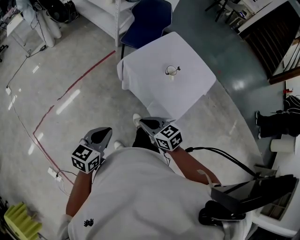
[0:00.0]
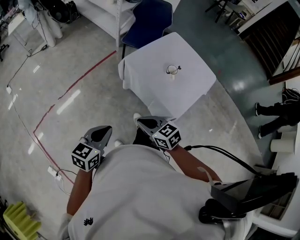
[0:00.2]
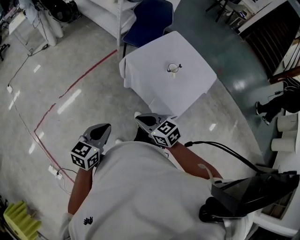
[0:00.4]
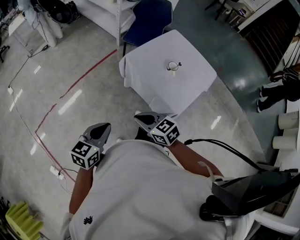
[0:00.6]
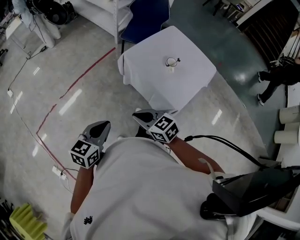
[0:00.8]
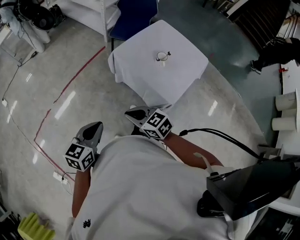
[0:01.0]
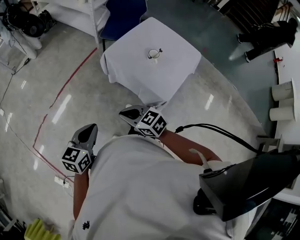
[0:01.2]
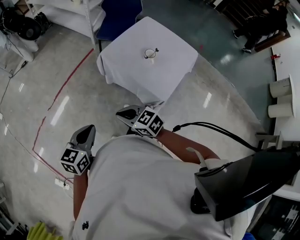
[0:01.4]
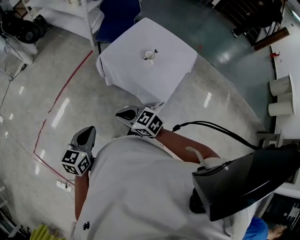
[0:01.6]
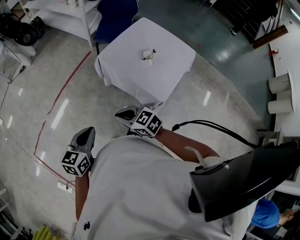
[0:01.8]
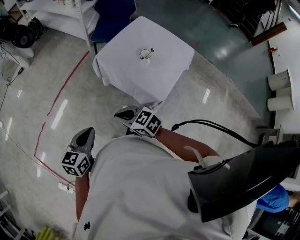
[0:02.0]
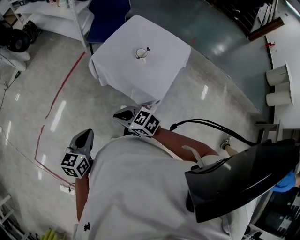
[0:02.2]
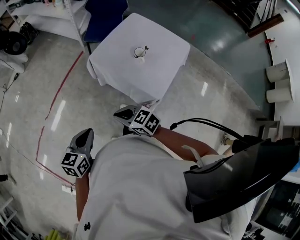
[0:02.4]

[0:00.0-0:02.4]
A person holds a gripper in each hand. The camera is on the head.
0:00.0 to 0:01.2: The right gripper ends up about 5 cm from where it was.
0:01.2 to 0:02.4: The right gripper shifts by approximately 5 cm, while the left gripper ends up some 5 cm from where it was.

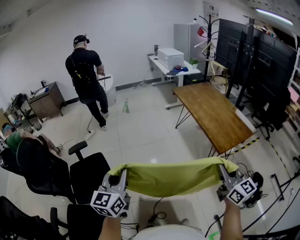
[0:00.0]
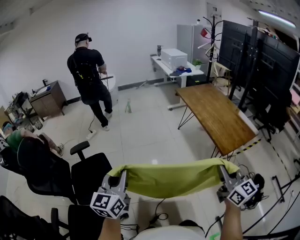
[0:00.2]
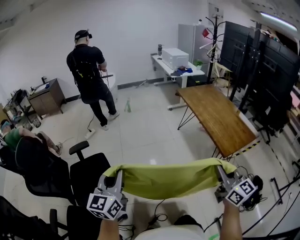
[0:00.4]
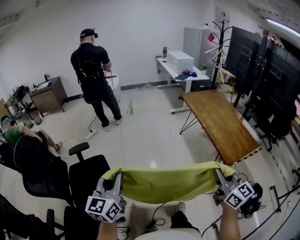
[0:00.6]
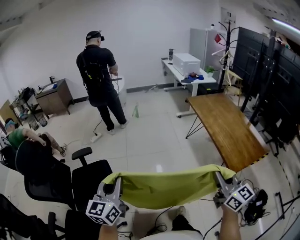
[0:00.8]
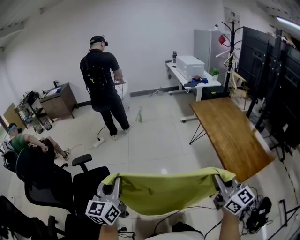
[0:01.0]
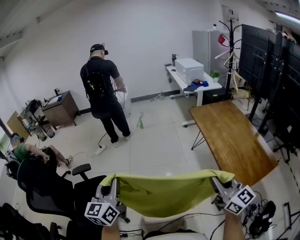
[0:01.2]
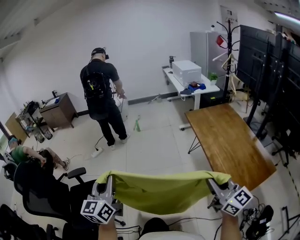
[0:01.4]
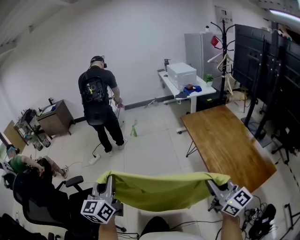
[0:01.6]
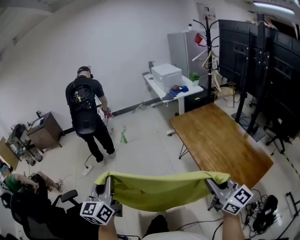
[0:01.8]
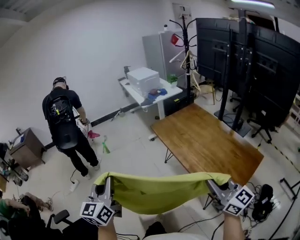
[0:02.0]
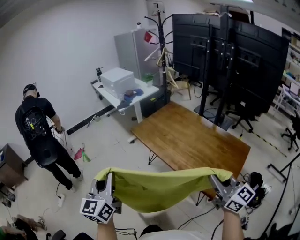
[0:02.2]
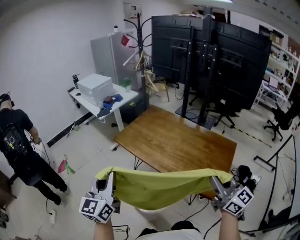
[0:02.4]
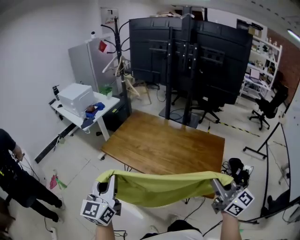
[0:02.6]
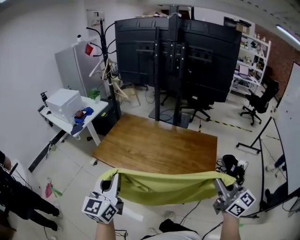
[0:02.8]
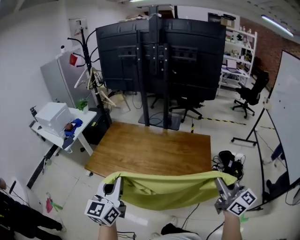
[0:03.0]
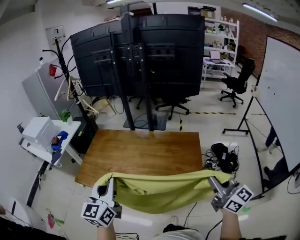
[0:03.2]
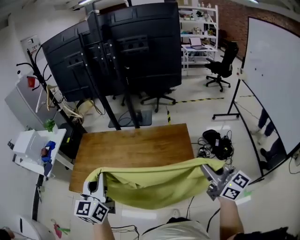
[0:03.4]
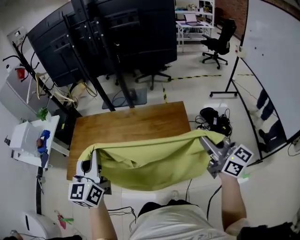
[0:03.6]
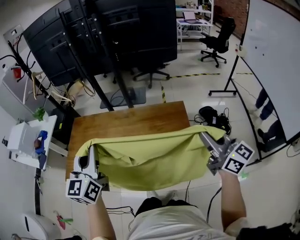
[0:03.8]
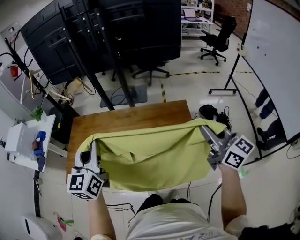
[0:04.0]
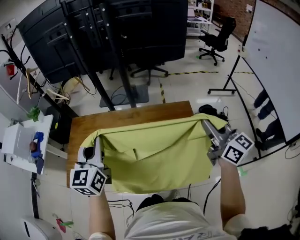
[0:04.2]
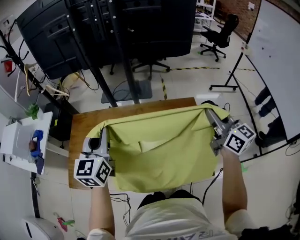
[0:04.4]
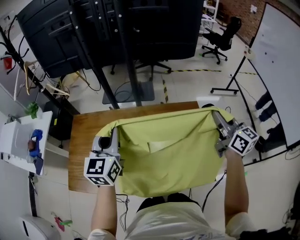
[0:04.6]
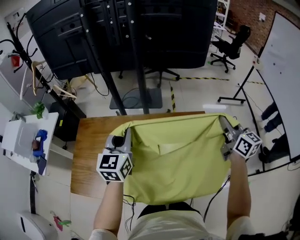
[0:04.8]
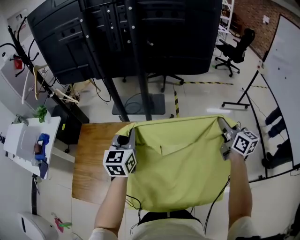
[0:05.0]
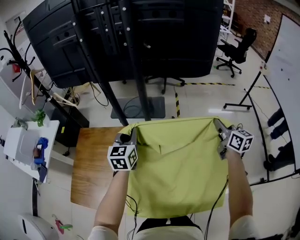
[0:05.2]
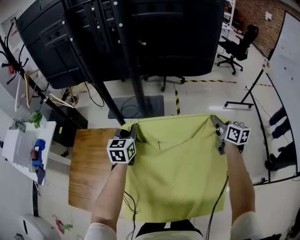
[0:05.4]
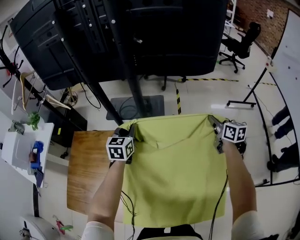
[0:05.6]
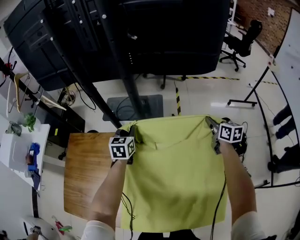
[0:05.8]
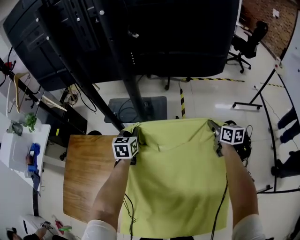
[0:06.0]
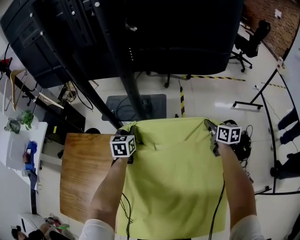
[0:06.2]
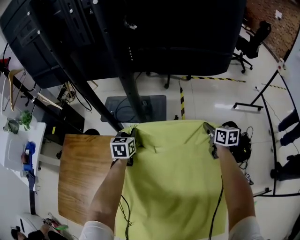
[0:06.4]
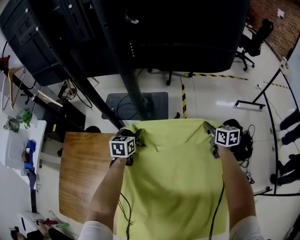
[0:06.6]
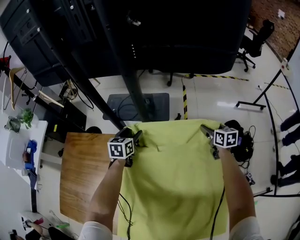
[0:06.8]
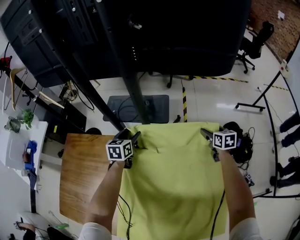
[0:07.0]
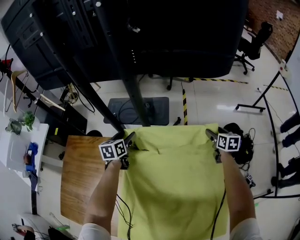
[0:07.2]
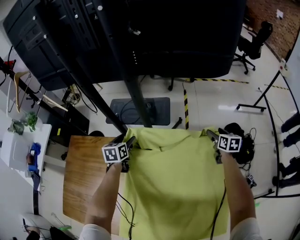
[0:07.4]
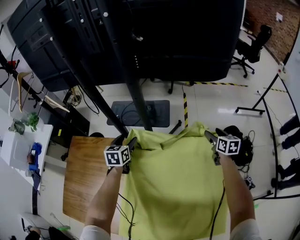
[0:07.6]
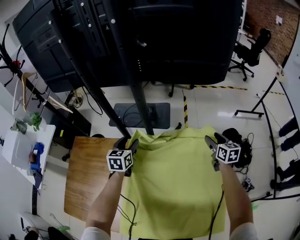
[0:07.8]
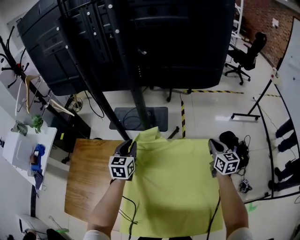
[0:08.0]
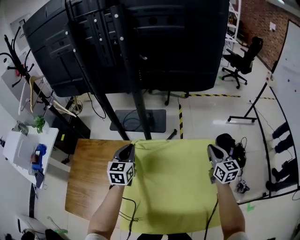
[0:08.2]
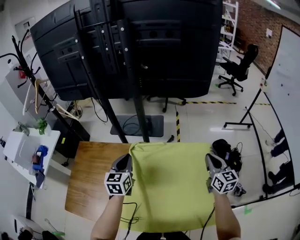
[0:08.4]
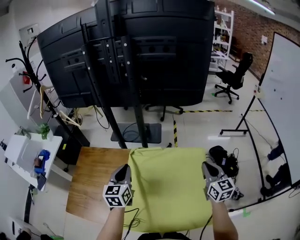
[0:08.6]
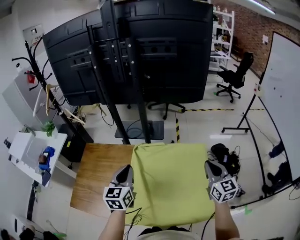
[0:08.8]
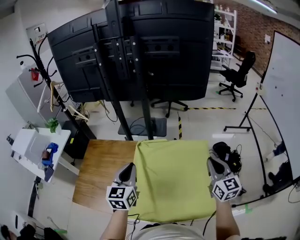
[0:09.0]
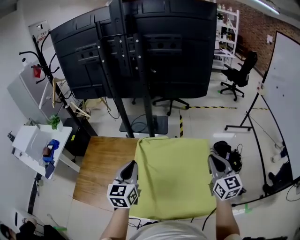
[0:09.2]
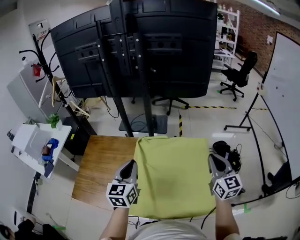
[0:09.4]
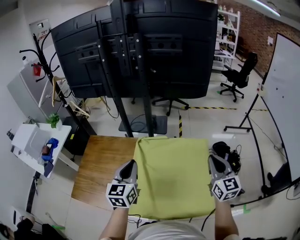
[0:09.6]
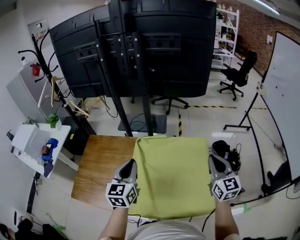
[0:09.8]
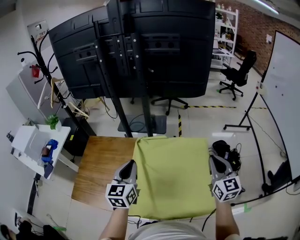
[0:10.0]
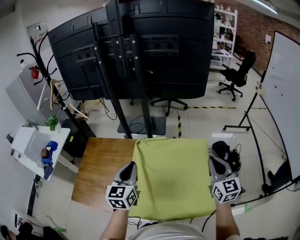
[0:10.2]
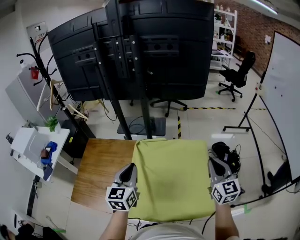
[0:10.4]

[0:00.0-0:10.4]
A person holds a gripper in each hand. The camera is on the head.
0:00.0 to 0:01.4: Both grippers travel together forward, some 25 cm.
0:01.4 to 0:03.0: The right gripper changes place by approximately 20 cm, and changes its angle by approximately 70 degrees, while the left gripper changes place by approximately 50 cm, and swivels roughly 70 degrees.
0:03.0 to 0:04.4: Both grippers move forward, some 30 cm.
0:04.4 to 0:06.0: Both grippers move forward and downward, roughly 50 cm. The left gripper rotates roughly 30 degrees; the right gripper turns by about 30 degrees.
0:06.0 to 0:07.4: The right gripper is displaced downward by approximately 10 cm, and opens; the left gripper shifts about 10 cm to the left and downward, and opens up.
0:07.4 to 0:09.0: The grippers both shift backward and upward by about 50 cm. The left gripper changes its angle by approximately 30 degrees, and closes its fingers; the right gripper swivels about 40 degrees, and closes.
0:09.0 to 0:10.4: The grippers make only small movements.

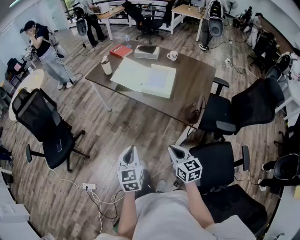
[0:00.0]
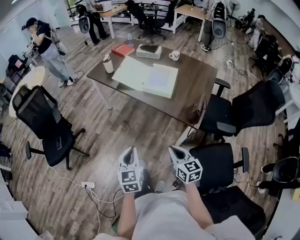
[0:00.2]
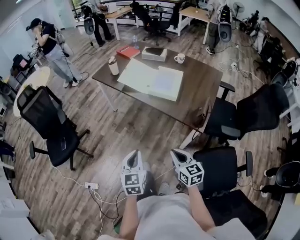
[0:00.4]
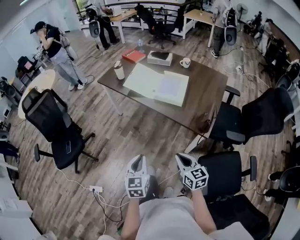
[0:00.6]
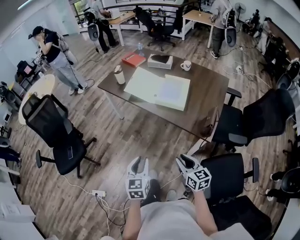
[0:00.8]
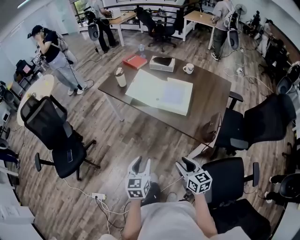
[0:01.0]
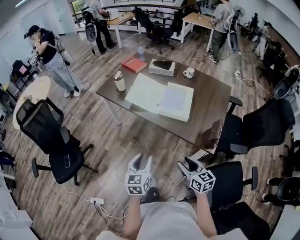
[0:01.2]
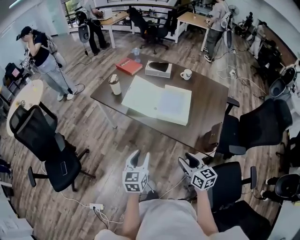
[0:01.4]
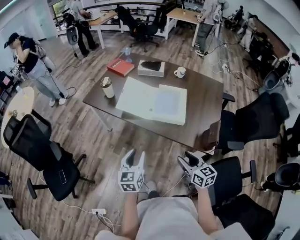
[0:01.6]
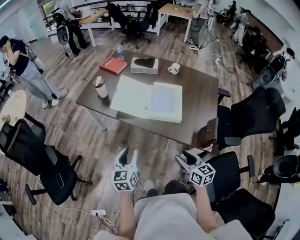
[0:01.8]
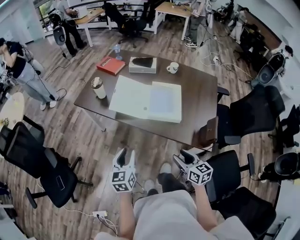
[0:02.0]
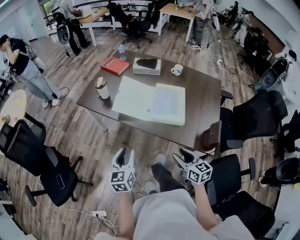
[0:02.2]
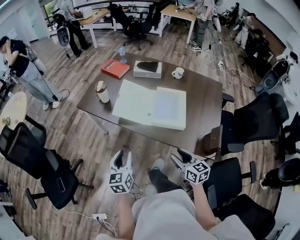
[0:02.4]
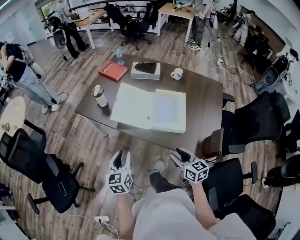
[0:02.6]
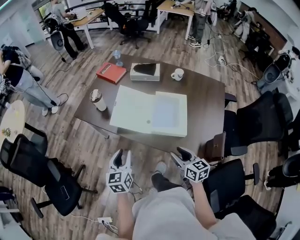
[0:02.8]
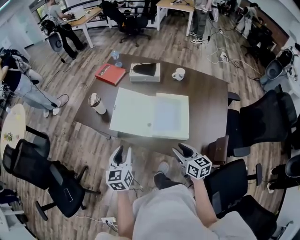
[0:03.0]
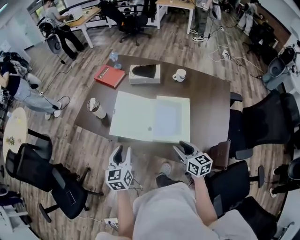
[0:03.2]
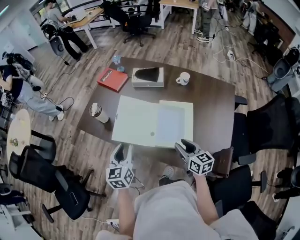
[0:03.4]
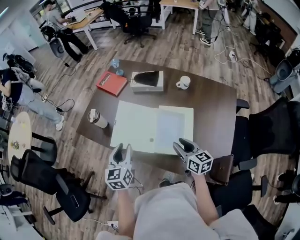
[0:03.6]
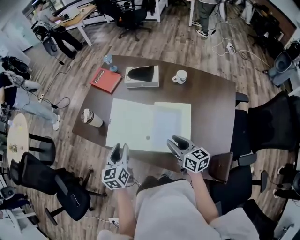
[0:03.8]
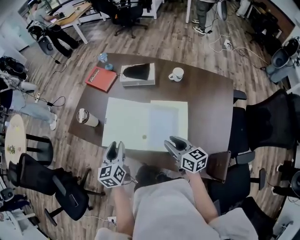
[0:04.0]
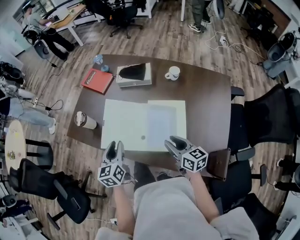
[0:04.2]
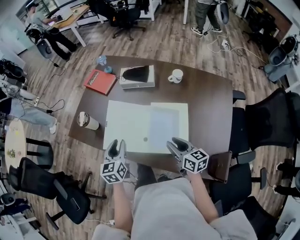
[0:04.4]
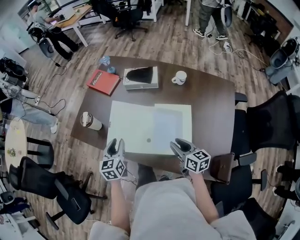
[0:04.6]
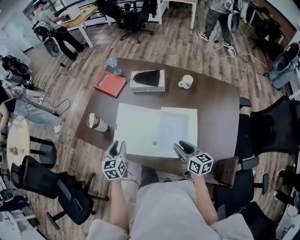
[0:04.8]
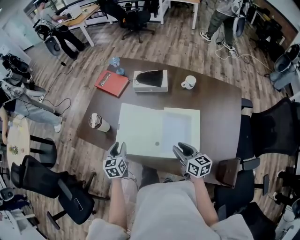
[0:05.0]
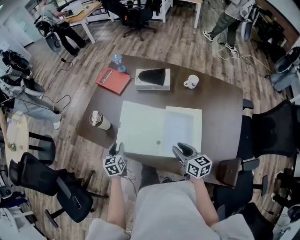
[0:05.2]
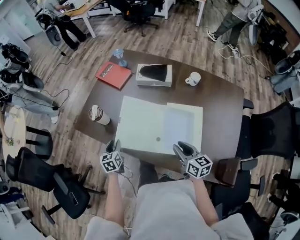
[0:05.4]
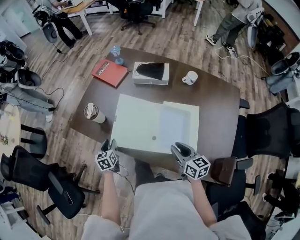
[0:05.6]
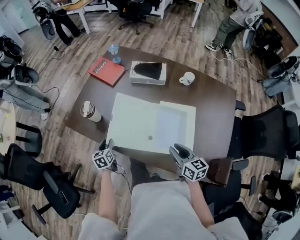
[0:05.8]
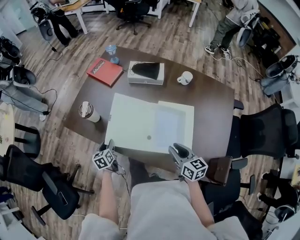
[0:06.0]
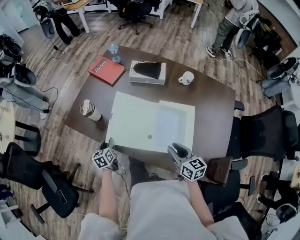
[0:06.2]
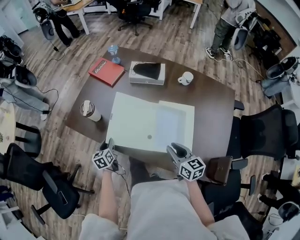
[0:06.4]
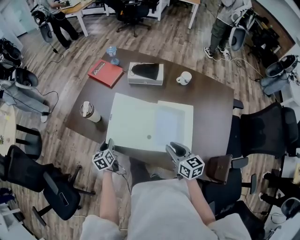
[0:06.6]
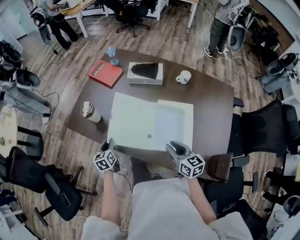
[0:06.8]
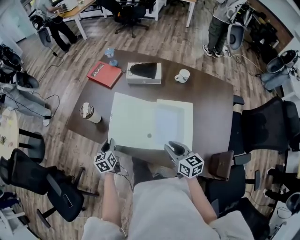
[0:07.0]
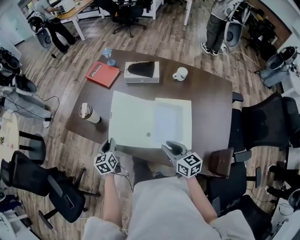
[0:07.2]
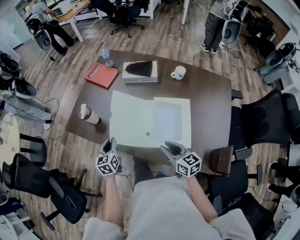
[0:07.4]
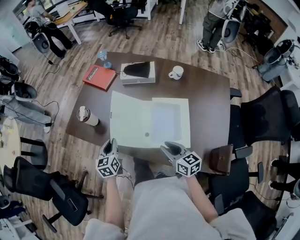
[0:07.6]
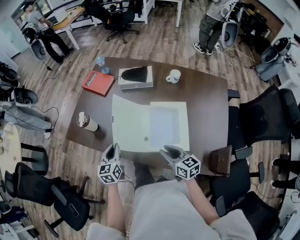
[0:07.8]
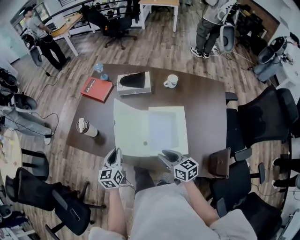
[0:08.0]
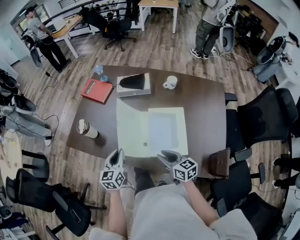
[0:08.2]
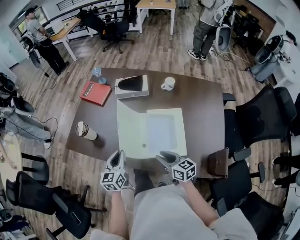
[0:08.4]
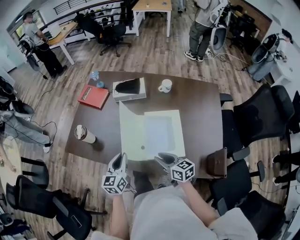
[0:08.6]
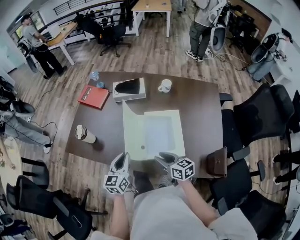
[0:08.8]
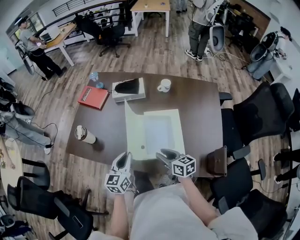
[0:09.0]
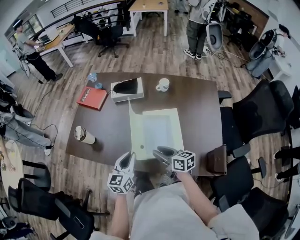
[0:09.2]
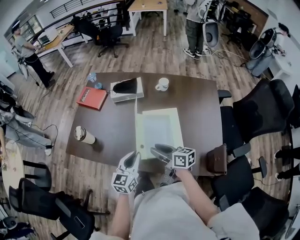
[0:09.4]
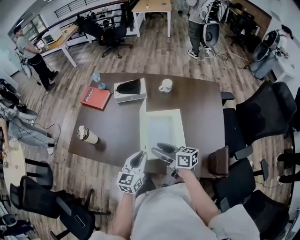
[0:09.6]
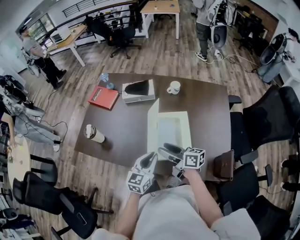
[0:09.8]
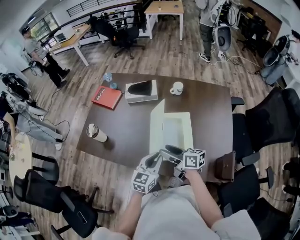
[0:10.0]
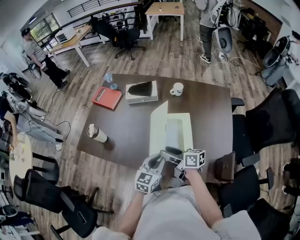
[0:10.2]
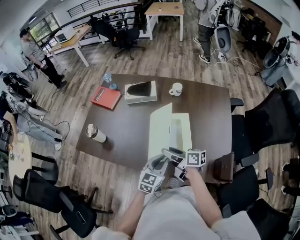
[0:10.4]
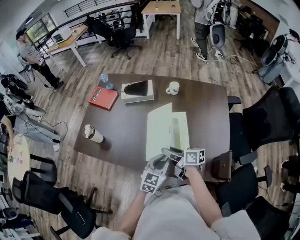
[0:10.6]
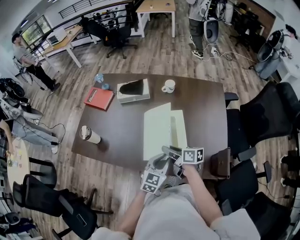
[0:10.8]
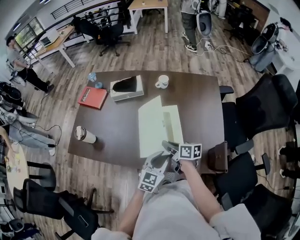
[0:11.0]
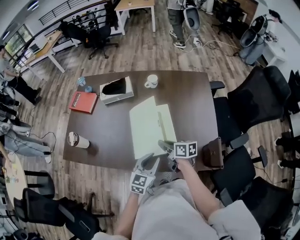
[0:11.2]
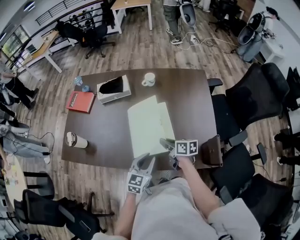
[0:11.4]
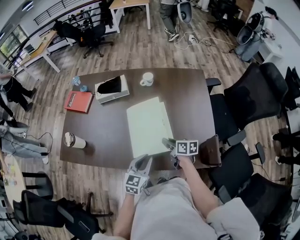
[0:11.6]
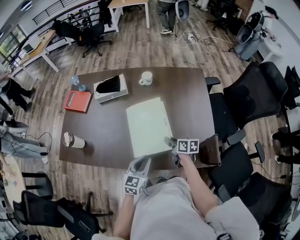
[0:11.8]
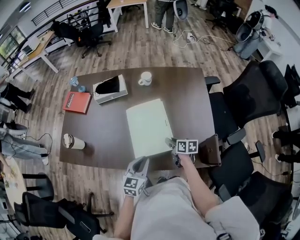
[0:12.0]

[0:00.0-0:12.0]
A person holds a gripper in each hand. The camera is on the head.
0:00.0 to 0:01.6: Both grippers move forward, about 25 cm. The left gripper opens, while the right gripper opens.
0:01.6 to 0:03.0: The two grippers go some 20 cm forward.
0:03.0 to 0:04.4: Both grippers move forward, about 15 cm.
0:04.4 to 0:06.0: The left gripper shifts some 25 cm downward and to the left, and turns by roughly 20 degrees.
0:06.0 to 0:07.6: The left gripper shifts about 15 cm upward and to the right, and closes its fingers.
0:07.6 to 0:09.0: The left gripper moves to the right, upward and backward, some 15 cm, and swivels approximately 30 degrees.
0:09.0 to 0:10.4: The right gripper changes its angle by approximately 30 degrees, while the left gripper shifts roughly 15 cm to the right, and changes its angle by roughly 20 degrees.
0:10.4 to 0:12.0: The right gripper shifts approximately 20 cm downward and to the right, rotates about 40 degrees, and closes up.
